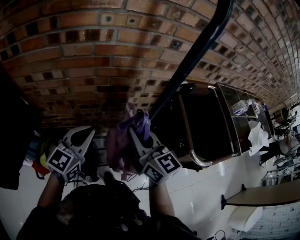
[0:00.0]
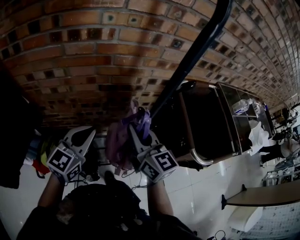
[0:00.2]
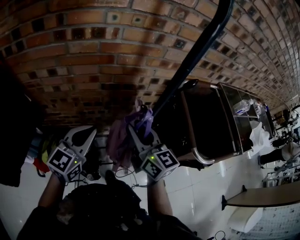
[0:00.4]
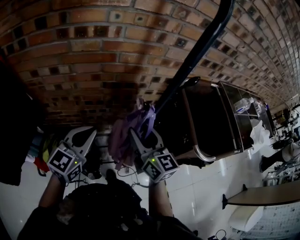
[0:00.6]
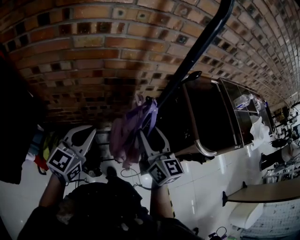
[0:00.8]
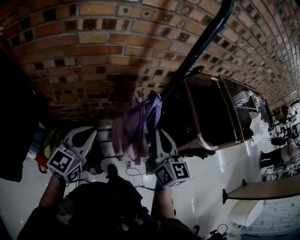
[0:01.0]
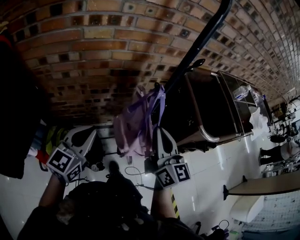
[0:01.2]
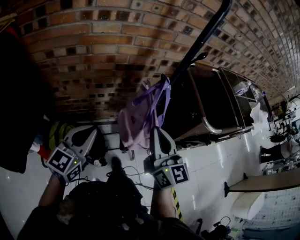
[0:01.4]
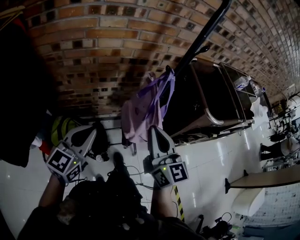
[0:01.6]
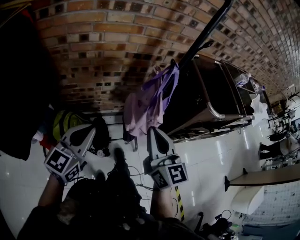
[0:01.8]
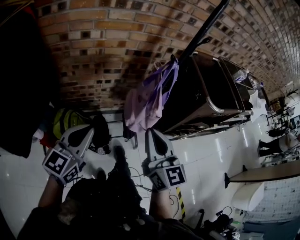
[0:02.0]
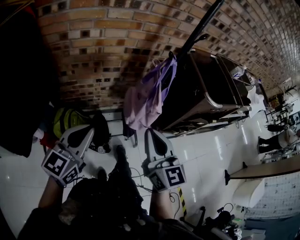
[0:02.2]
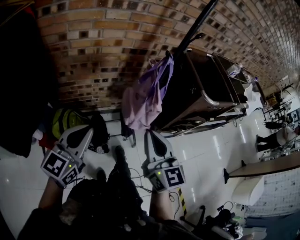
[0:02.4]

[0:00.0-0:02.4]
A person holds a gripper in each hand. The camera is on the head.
0:00.0 to 0:01.2: The right gripper heads backward, covering approximately 10 cm, rotates about 20 degrees, and opens, then closes again. The left gripper is displaced backward and to the left by some 15 cm.
0:01.2 to 0:02.4: The grippers both shift backward by about 20 cm.

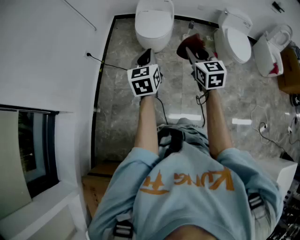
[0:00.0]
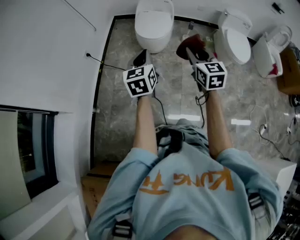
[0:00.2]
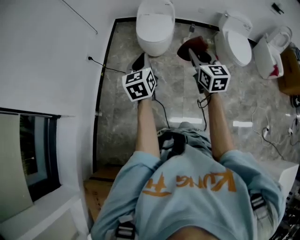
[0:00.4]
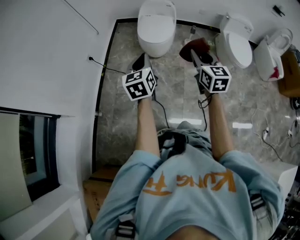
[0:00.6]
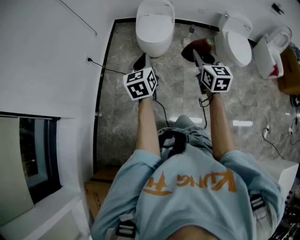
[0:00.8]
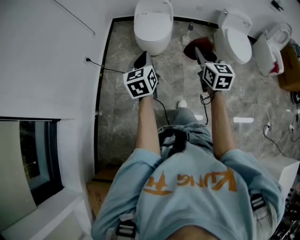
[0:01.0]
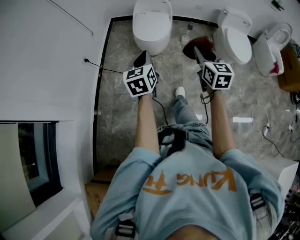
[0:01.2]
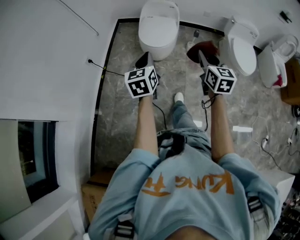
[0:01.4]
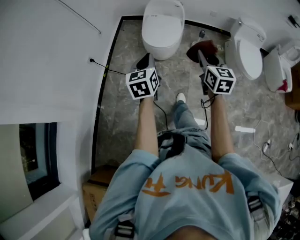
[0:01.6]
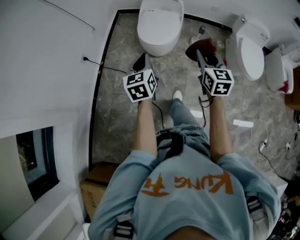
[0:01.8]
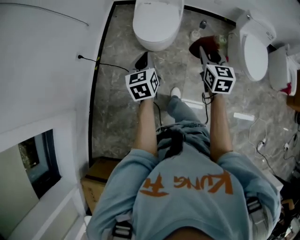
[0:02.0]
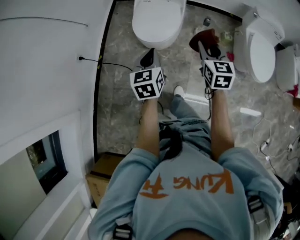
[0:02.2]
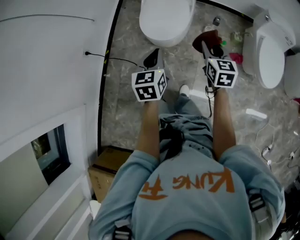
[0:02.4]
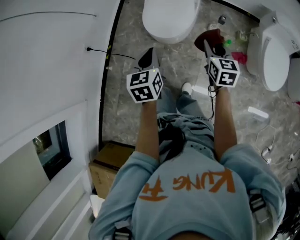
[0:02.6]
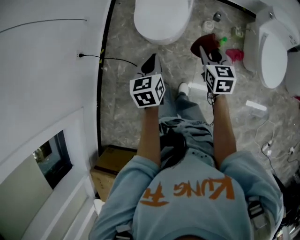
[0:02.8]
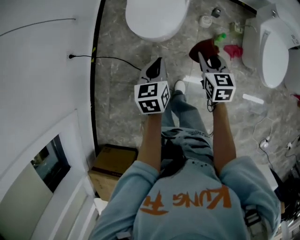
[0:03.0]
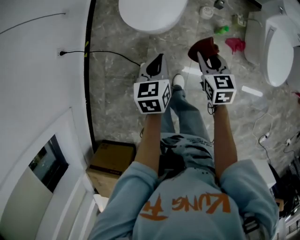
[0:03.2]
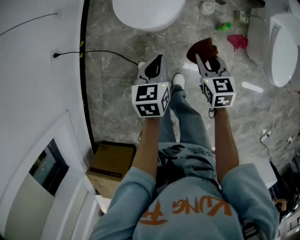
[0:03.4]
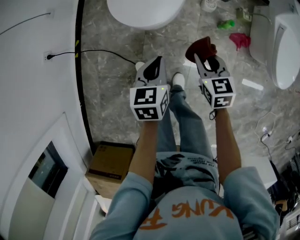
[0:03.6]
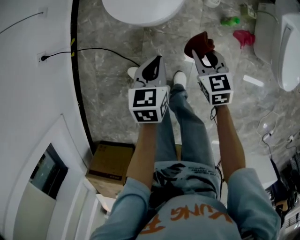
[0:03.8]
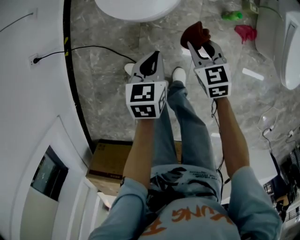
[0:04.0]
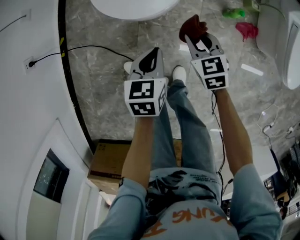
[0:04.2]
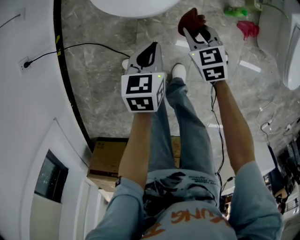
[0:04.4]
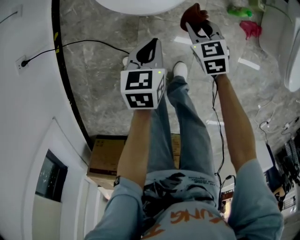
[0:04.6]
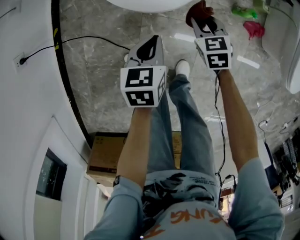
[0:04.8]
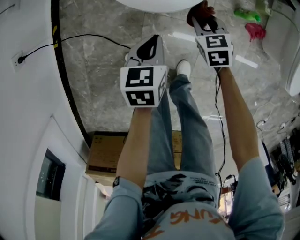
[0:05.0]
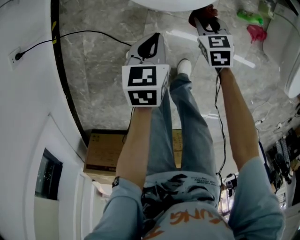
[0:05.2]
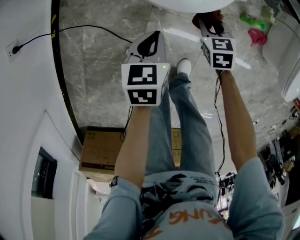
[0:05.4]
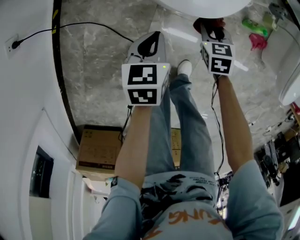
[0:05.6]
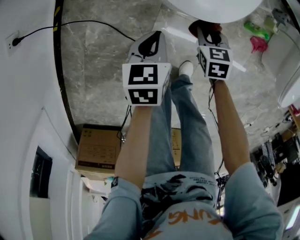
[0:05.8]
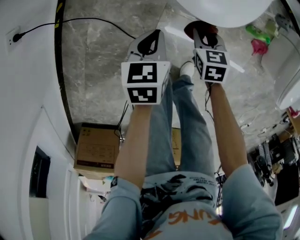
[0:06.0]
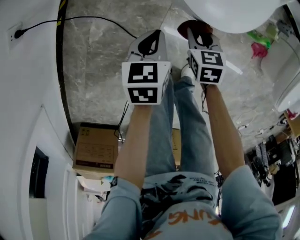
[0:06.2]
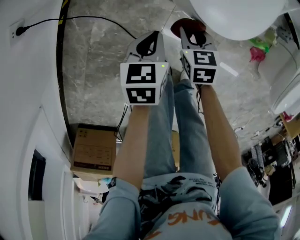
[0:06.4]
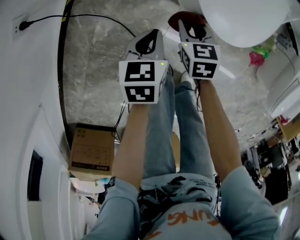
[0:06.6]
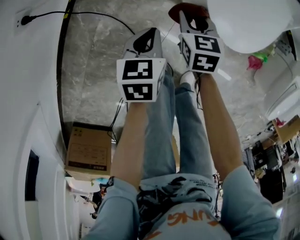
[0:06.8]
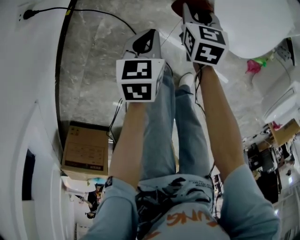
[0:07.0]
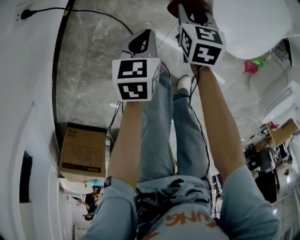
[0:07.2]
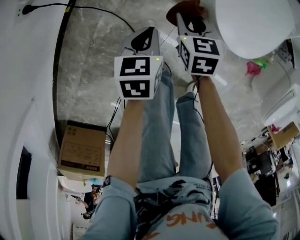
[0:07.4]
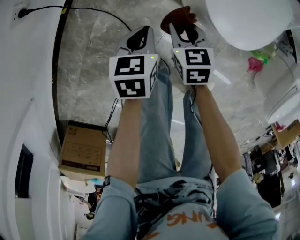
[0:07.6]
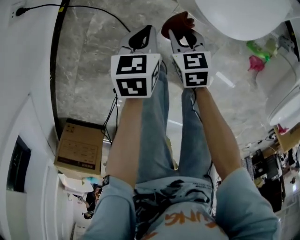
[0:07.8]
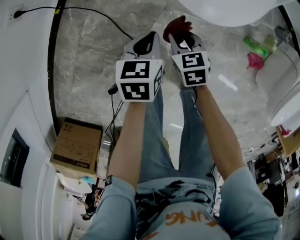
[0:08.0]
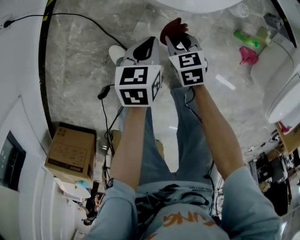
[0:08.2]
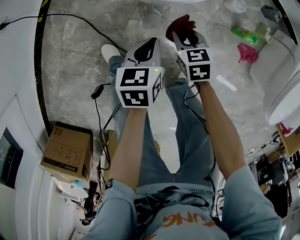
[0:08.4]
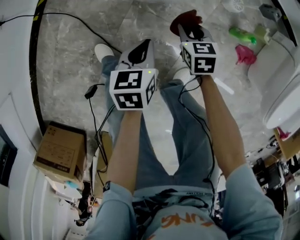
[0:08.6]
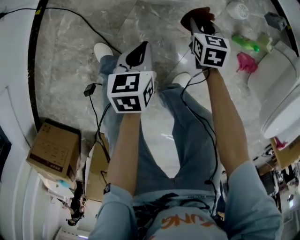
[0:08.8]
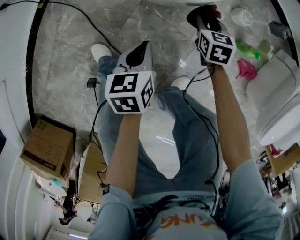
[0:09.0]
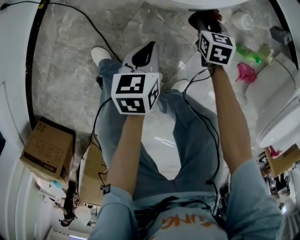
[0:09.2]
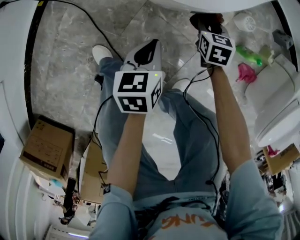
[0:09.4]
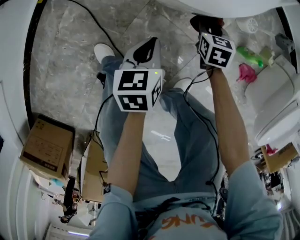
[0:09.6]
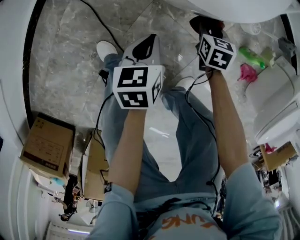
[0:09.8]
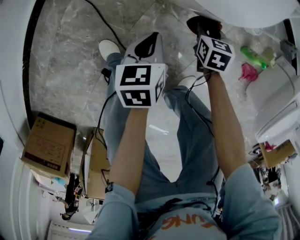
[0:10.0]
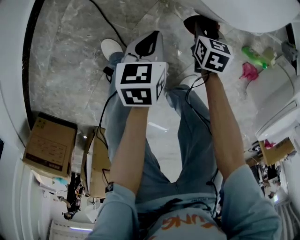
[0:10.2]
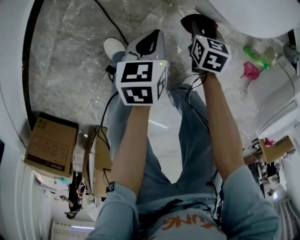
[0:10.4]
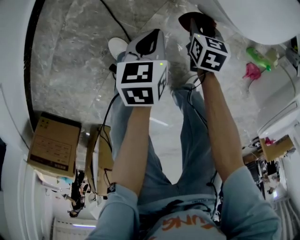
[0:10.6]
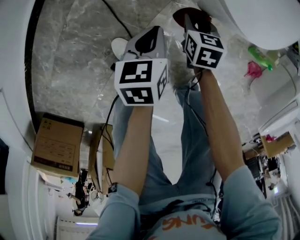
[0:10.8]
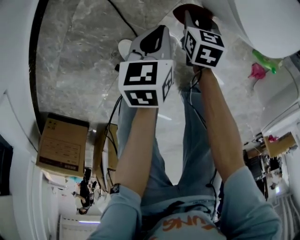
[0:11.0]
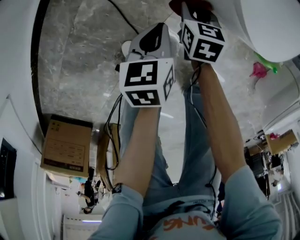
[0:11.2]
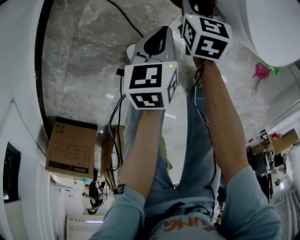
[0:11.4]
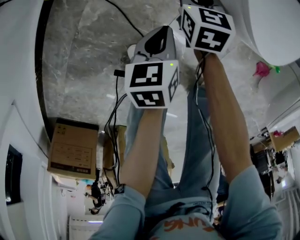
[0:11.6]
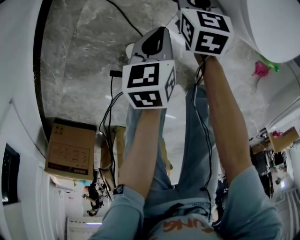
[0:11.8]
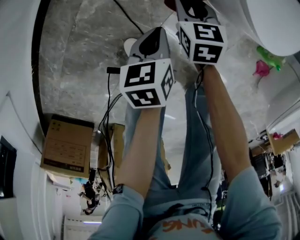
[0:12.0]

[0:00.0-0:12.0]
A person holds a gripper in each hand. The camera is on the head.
0:00.0 to 0:01.6: The grippers both shift forward by roughly 15 cm.
0:01.6 to 0:03.0: The right gripper heads forward and downward, covering about 35 cm, and rotates roughly 20 degrees; the left gripper is displaced forward, downward and to the right by approximately 35 cm.
0:03.0 to 0:04.4: The grippers both shift downward by roughly 30 cm. The right gripper changes its angle by about 20 degrees.
0:04.4 to 0:06.0: The left gripper moves to the left, some 20 cm; the right gripper is displaced to the left and downward by approximately 15 cm.
0:06.0 to 0:07.6: The right gripper is displaced to the left by about 20 cm; the left gripper travels to the left by roughly 10 cm.
0:07.6 to 0:09.0: The left gripper travels to the right and backward by about 30 cm. Meanwhile the right gripper heads to the right, covering about 35 cm.
0:09.0 to 0:10.4: Both grippers travel together to the left, roughly 15 cm.
0:10.4 to 0:12.0: The right gripper moves to the left, some 20 cm. Meanwhile the left gripper travels to the left by some 10 cm.

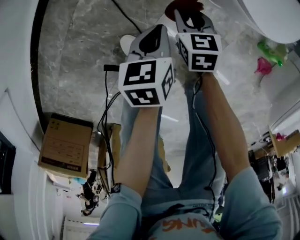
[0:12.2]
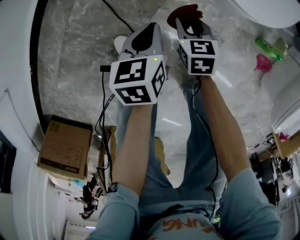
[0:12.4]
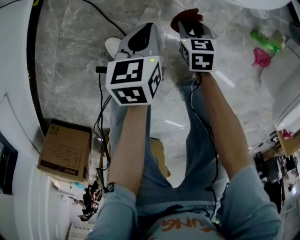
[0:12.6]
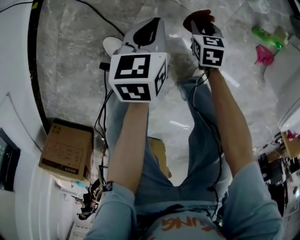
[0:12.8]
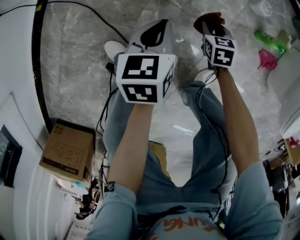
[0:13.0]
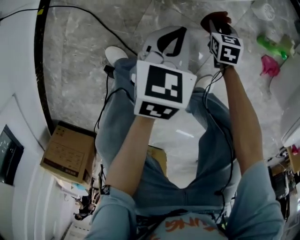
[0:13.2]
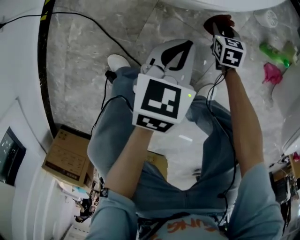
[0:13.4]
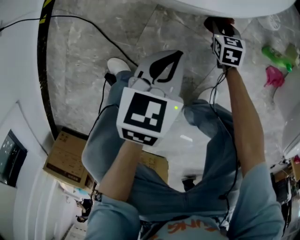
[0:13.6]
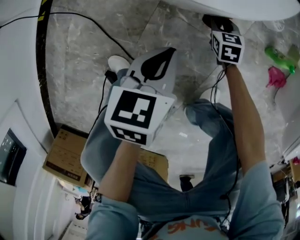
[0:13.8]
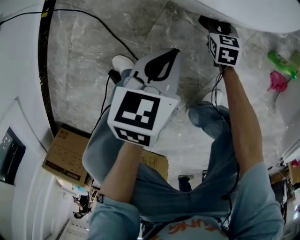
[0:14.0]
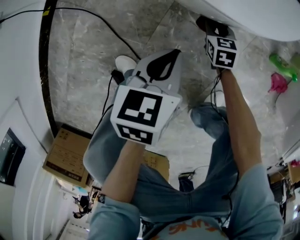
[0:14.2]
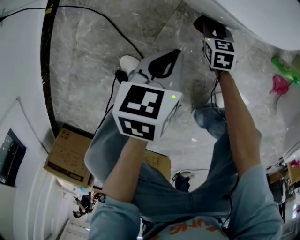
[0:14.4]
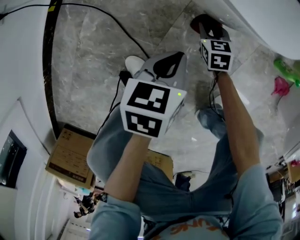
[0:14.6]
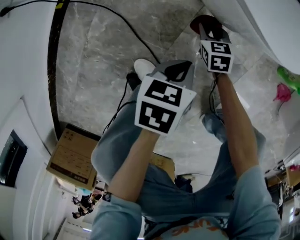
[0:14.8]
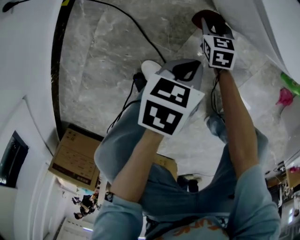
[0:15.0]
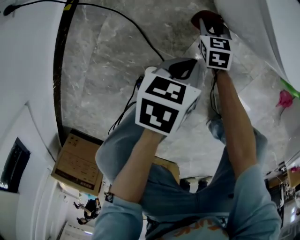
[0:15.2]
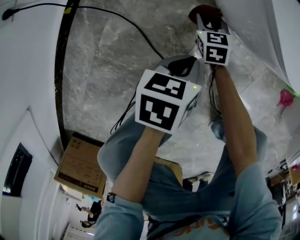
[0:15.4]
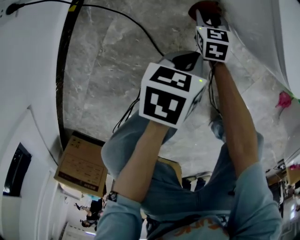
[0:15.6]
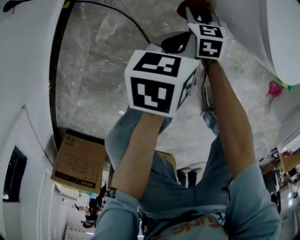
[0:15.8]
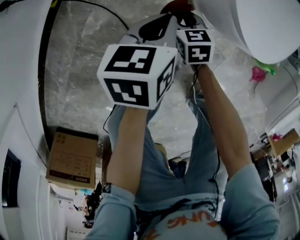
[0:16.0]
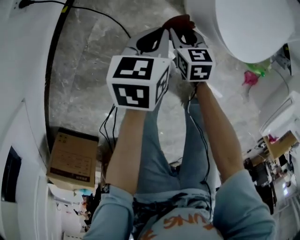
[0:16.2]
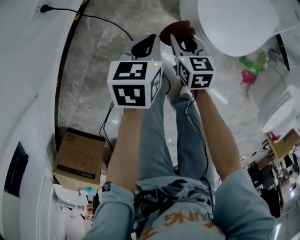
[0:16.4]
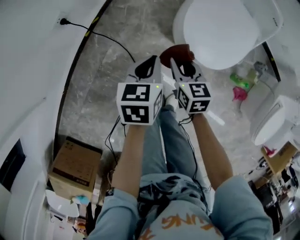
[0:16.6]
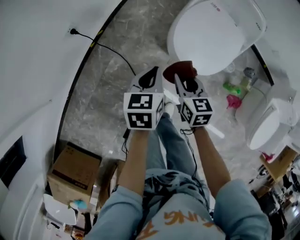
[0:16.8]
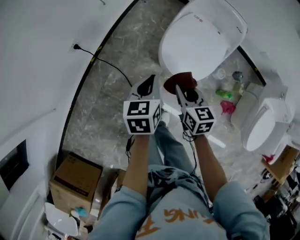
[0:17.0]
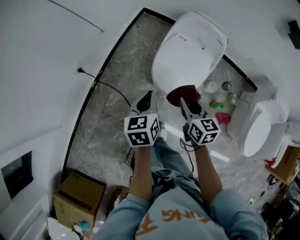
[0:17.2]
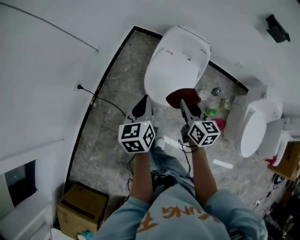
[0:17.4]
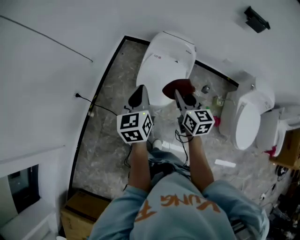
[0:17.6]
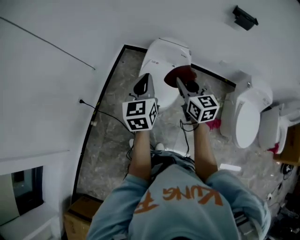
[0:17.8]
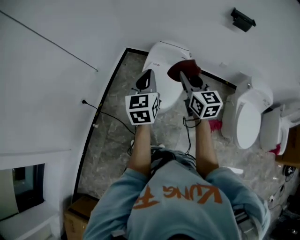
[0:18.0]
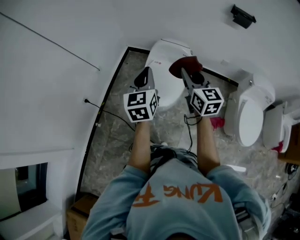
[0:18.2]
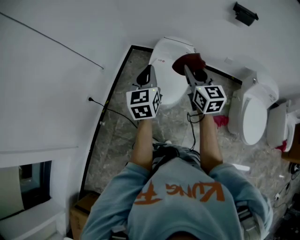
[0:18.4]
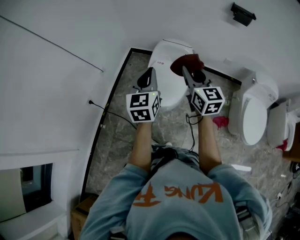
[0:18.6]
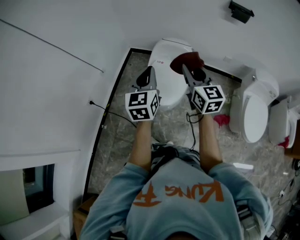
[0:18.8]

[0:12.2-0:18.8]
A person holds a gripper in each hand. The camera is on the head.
0:12.2 to 0:13.8: The left gripper is displaced to the right by approximately 15 cm, and turns by some 20 degrees; the right gripper goes approximately 30 cm to the right and downward.
0:13.8 to 0:15.4: The right gripper travels to the left by some 30 cm, while the left gripper travels to the left by some 15 cm.
0:15.4 to 0:17.2: Both grippers travel together upward, roughly 60 cm. The right gripper turns by approximately 30 degrees. Meanwhile the left gripper changes its angle by some 40 degrees.
0:17.2 to 0:18.8: The left gripper heads upward and to the right, covering approximately 30 cm, and rotates about 40 degrees; the right gripper travels upward by approximately 30 cm, and rotates some 30 degrees.

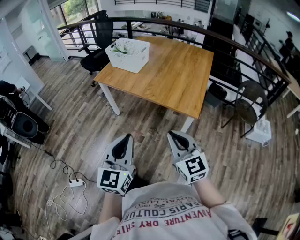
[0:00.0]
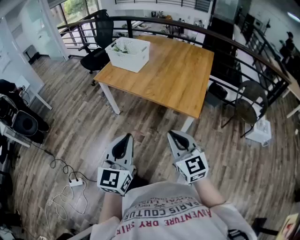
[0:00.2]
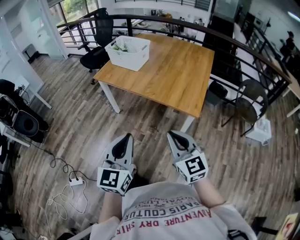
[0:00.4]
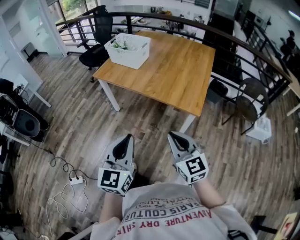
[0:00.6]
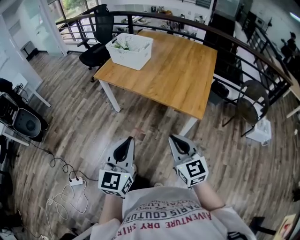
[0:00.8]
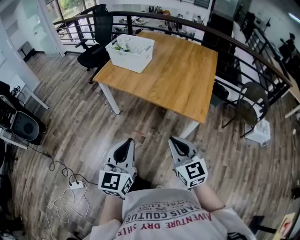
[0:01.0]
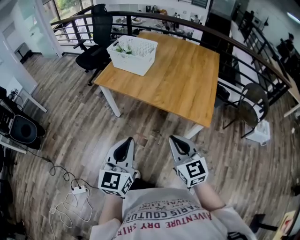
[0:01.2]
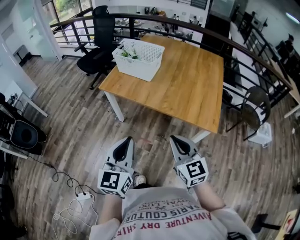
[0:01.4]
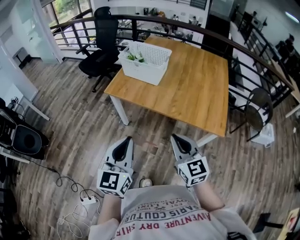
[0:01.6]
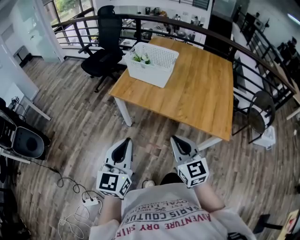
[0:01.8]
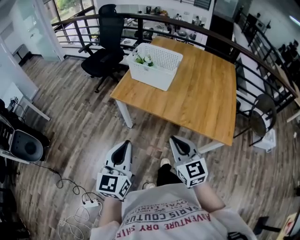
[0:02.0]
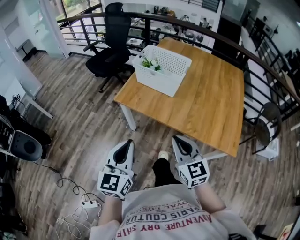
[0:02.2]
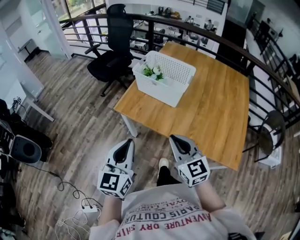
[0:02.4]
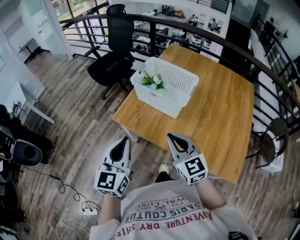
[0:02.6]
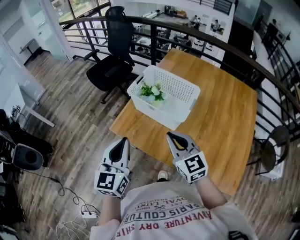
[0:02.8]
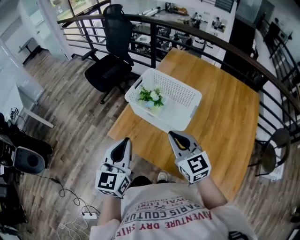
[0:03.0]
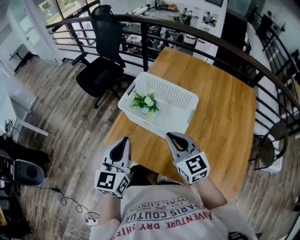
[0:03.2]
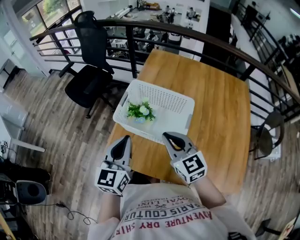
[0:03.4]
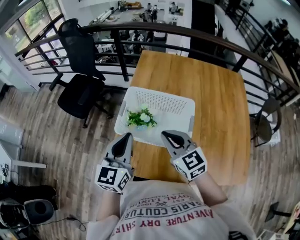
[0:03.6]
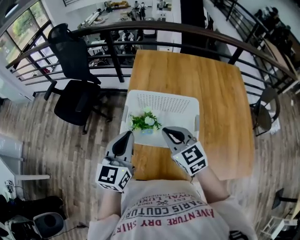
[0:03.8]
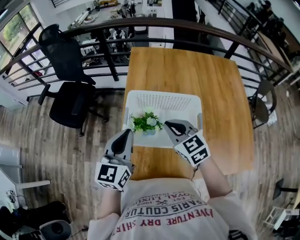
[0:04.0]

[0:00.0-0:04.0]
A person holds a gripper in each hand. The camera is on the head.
0:00.0 to 0:01.4: The two grippers go some 20 cm forward and to the left.
0:01.4 to 0:02.6: Both grippers move forward, some 35 cm.
0:02.6 to 0:04.0: The left gripper moves about 40 cm, and changes its angle by roughly 30 degrees. The right gripper moves about 35 cm, and swivels about 30 degrees.
